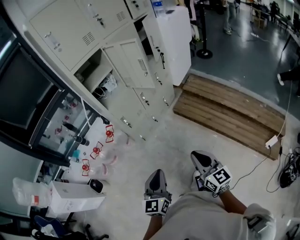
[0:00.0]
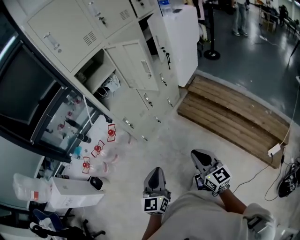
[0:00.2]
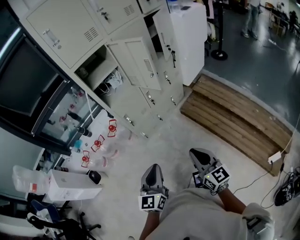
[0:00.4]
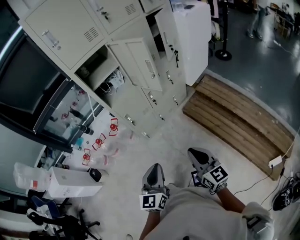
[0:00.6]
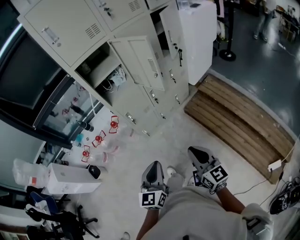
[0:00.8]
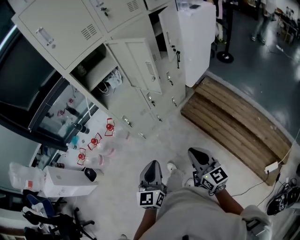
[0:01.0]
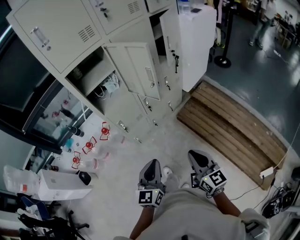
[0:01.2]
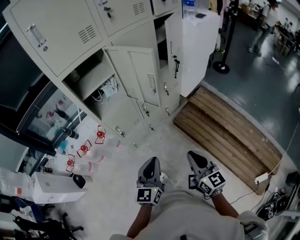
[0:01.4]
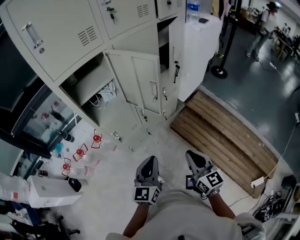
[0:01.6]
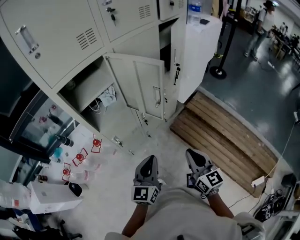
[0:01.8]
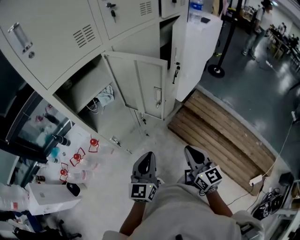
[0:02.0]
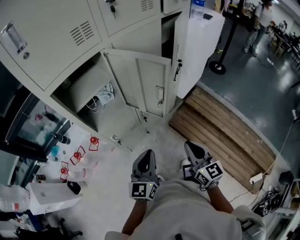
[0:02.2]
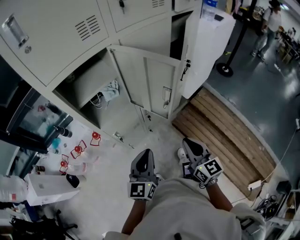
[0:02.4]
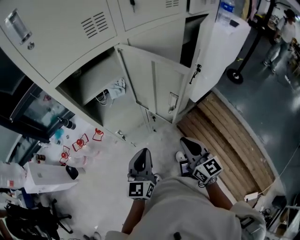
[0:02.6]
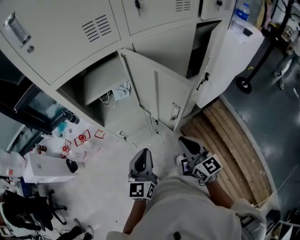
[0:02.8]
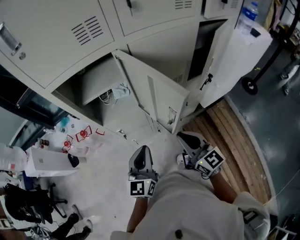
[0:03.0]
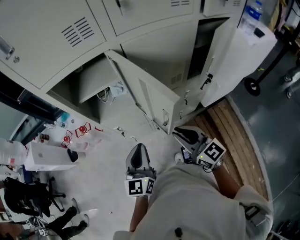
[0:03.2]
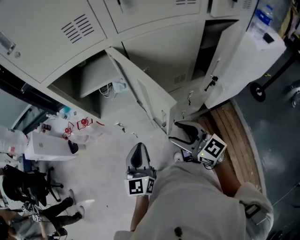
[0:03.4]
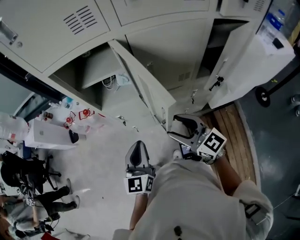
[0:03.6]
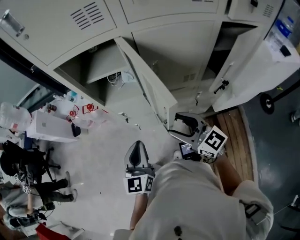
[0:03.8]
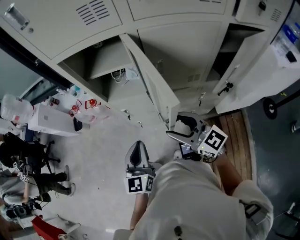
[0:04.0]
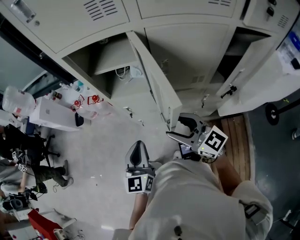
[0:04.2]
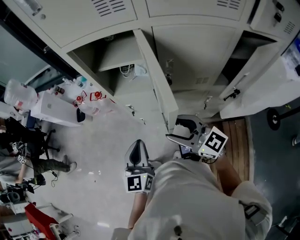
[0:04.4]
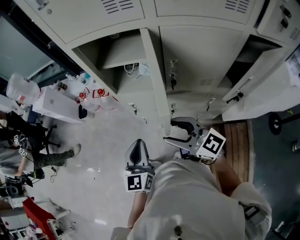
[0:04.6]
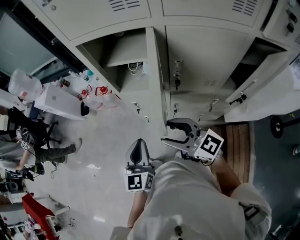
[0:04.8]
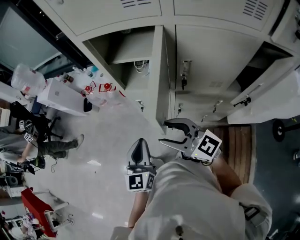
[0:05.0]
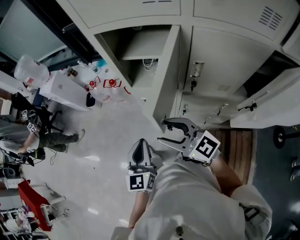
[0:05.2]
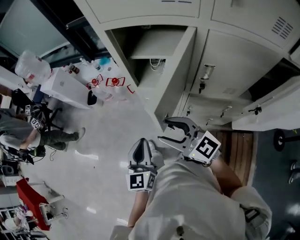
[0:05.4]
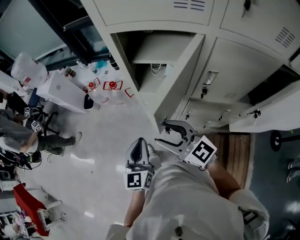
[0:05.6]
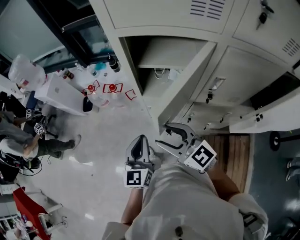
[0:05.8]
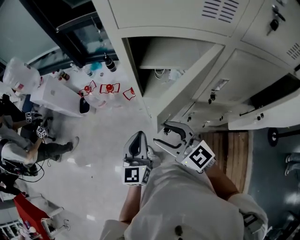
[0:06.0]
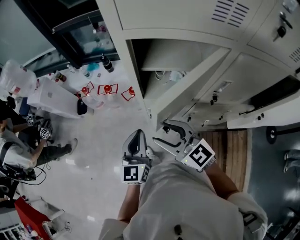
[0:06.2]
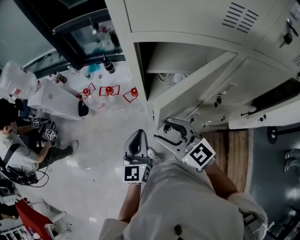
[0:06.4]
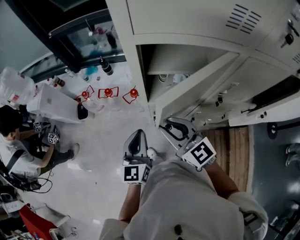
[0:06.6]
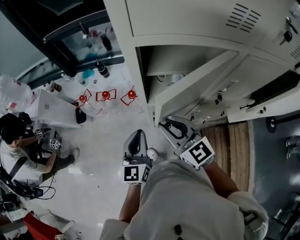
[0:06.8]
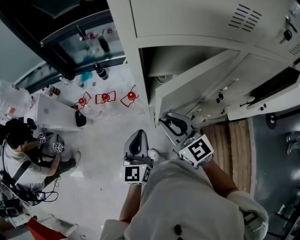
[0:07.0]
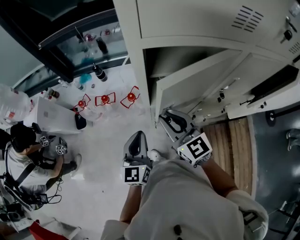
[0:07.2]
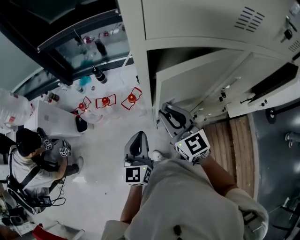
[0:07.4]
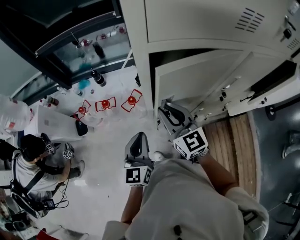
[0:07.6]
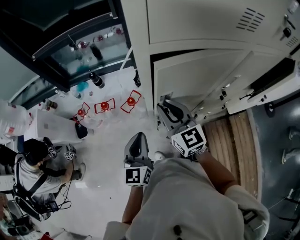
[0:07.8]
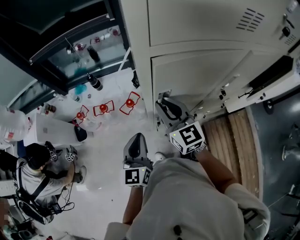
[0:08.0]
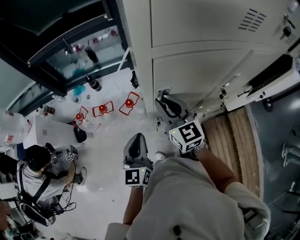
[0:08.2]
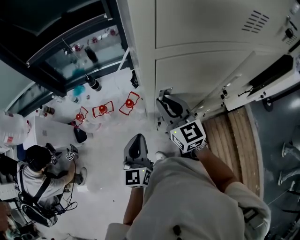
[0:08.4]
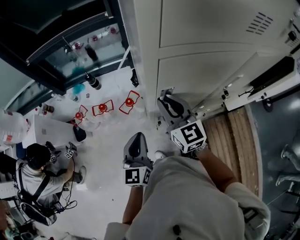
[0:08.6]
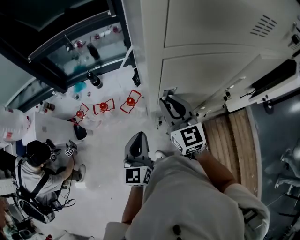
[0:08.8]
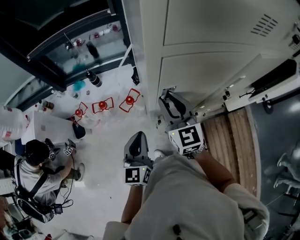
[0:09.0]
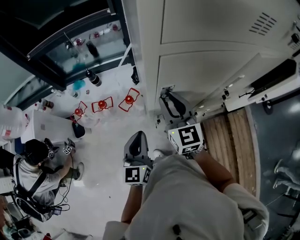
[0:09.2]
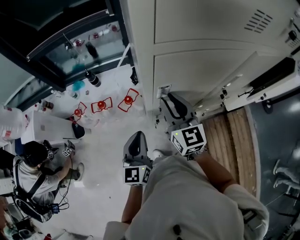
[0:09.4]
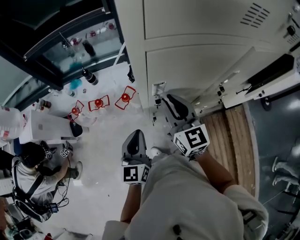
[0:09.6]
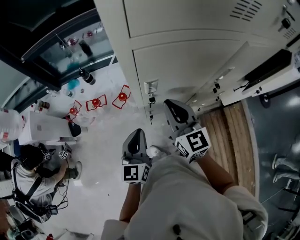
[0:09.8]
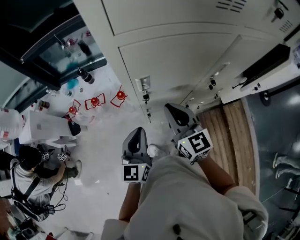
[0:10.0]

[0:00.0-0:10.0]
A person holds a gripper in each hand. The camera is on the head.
0:00.0 to 0:01.4: The left gripper heads forward and to the right, covering about 25 cm; the right gripper is displaced forward by some 25 cm.
0:01.4 to 0:02.8: Both grippers move forward, approximately 25 cm.
0:02.8 to 0:04.2: The left gripper rotates roughly 30 degrees, while the right gripper moves approximately 5 cm, turns by about 50 degrees, and opens up.
0:04.2 to 0:05.8: The right gripper travels to the left and forward by some 20 cm. The left gripper goes about 15 cm forward and to the left.
0:05.8 to 0:07.2: The left gripper is displaced forward and to the left by roughly 15 cm. Meanwhile the right gripper is displaced forward by approximately 15 cm, turns by about 30 degrees, and closes.
0:07.2 to 0:08.6: The left gripper changes place by roughly 5 cm, while the right gripper moves forward, about 10 cm.
0:08.6 to 0:10.0: The right gripper goes approximately 10 cm backward and to the right, while the left gripper heads to the right, covering roughly 5 cm.

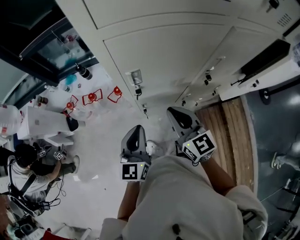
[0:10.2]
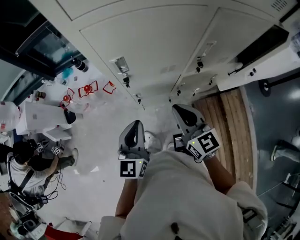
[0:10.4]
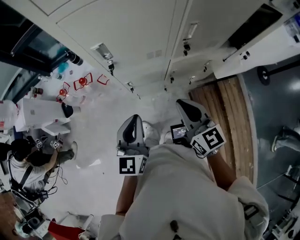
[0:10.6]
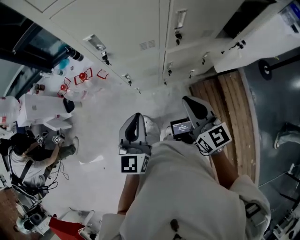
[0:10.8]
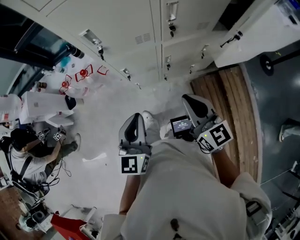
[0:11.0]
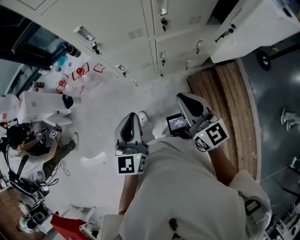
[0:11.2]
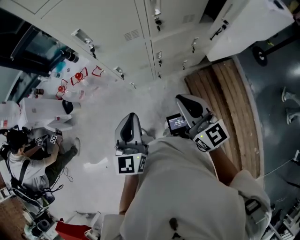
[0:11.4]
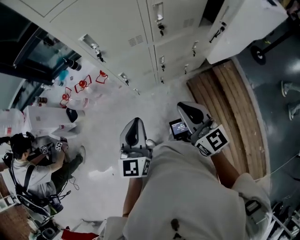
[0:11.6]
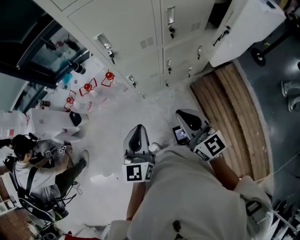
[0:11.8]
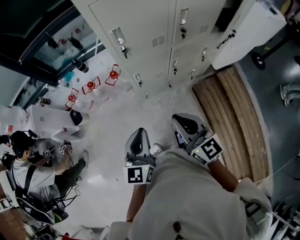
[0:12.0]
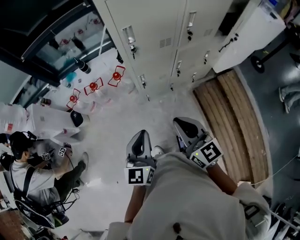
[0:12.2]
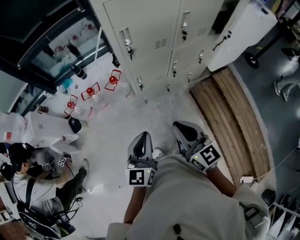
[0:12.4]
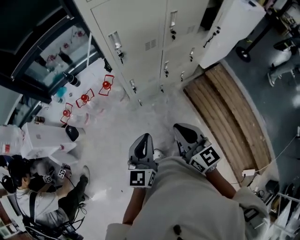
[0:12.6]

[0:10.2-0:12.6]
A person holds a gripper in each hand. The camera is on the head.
0:10.2 to 0:11.4: The two grippers go roughly 25 cm backward and to the right.
0:11.4 to 0:12.6: The left gripper travels to the left by about 15 cm; the right gripper shifts about 20 cm to the left and backward.

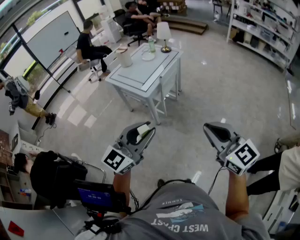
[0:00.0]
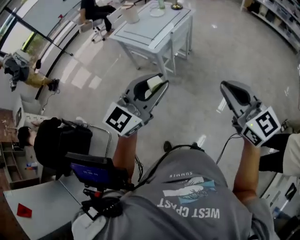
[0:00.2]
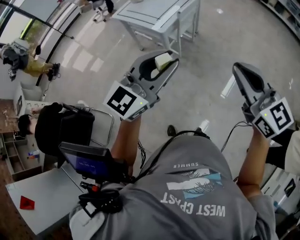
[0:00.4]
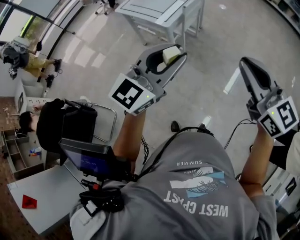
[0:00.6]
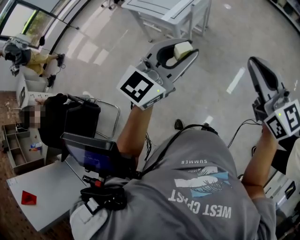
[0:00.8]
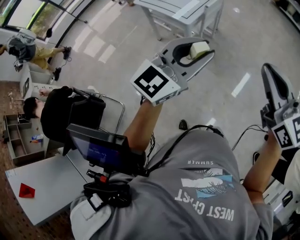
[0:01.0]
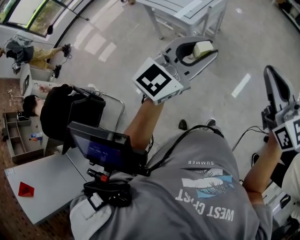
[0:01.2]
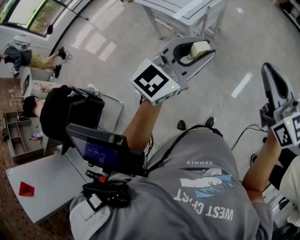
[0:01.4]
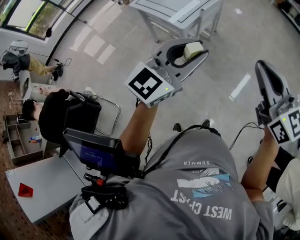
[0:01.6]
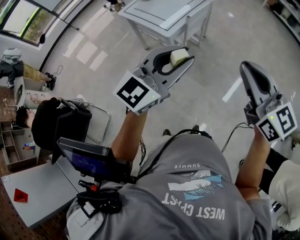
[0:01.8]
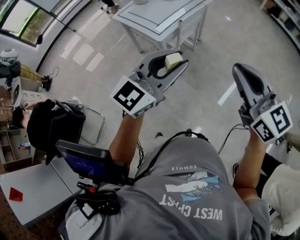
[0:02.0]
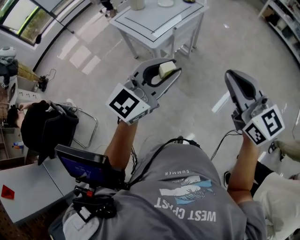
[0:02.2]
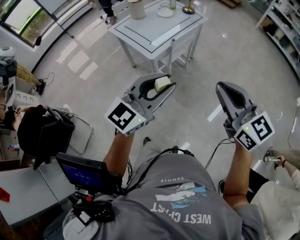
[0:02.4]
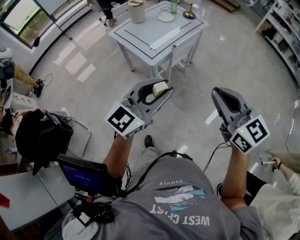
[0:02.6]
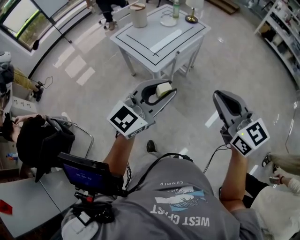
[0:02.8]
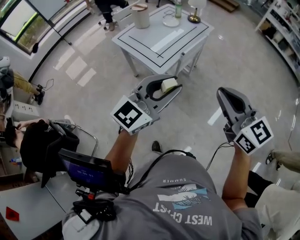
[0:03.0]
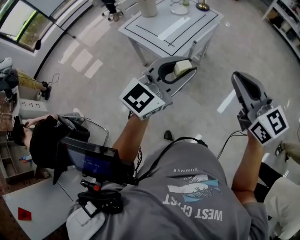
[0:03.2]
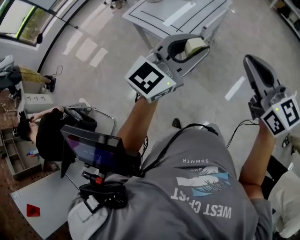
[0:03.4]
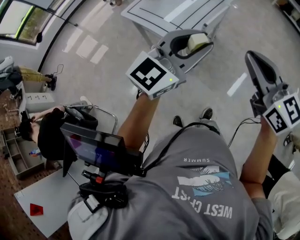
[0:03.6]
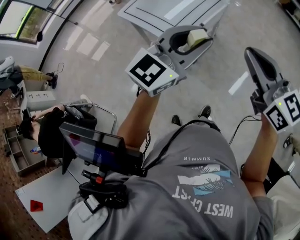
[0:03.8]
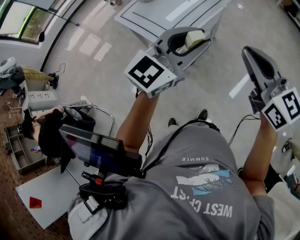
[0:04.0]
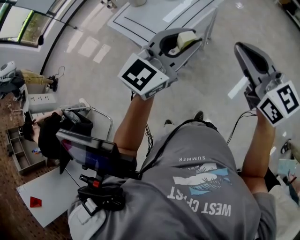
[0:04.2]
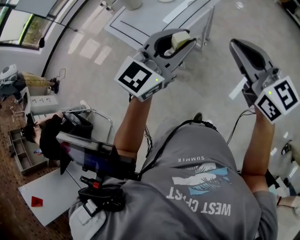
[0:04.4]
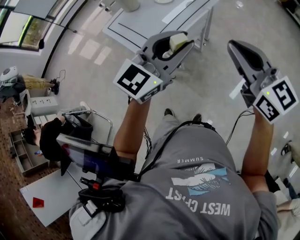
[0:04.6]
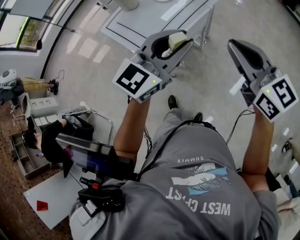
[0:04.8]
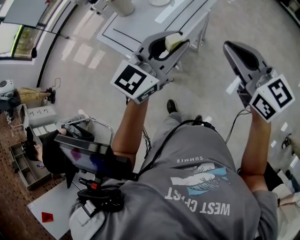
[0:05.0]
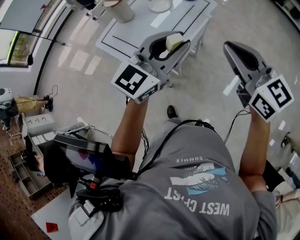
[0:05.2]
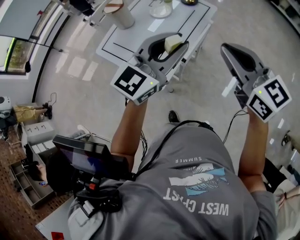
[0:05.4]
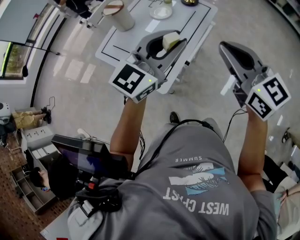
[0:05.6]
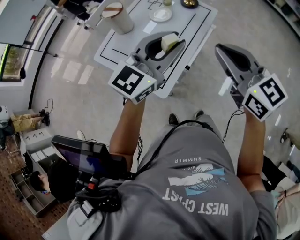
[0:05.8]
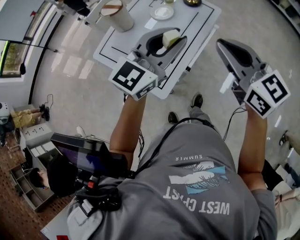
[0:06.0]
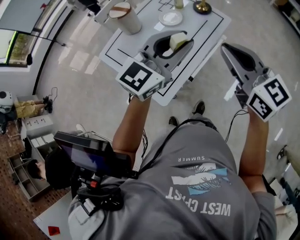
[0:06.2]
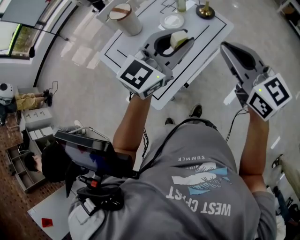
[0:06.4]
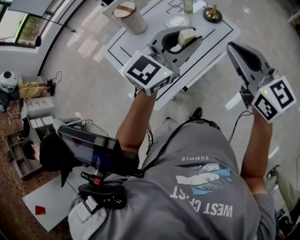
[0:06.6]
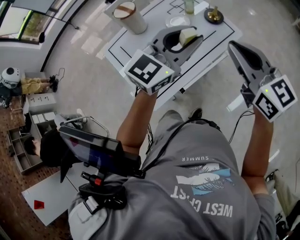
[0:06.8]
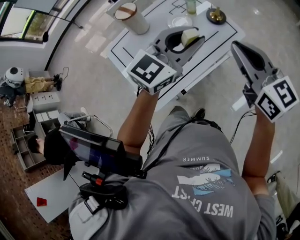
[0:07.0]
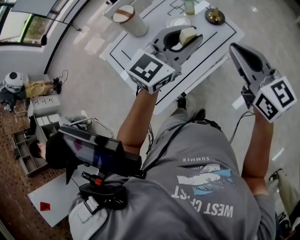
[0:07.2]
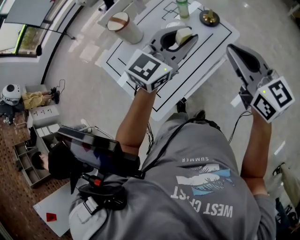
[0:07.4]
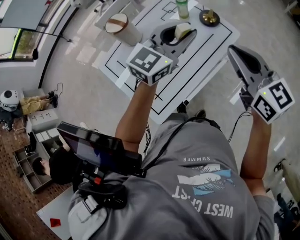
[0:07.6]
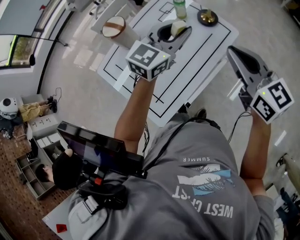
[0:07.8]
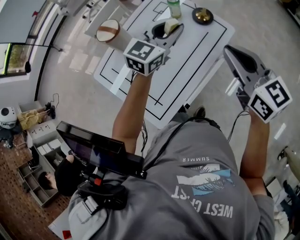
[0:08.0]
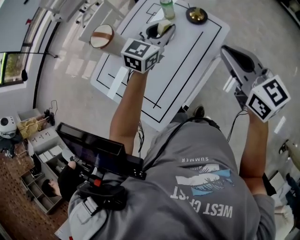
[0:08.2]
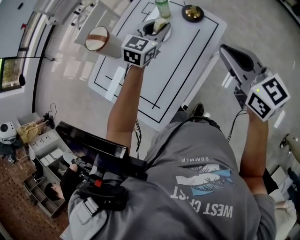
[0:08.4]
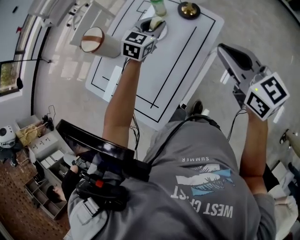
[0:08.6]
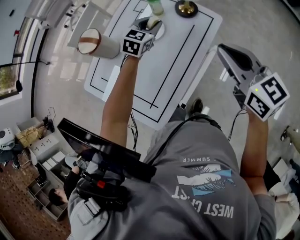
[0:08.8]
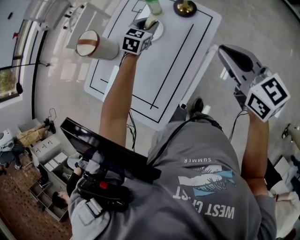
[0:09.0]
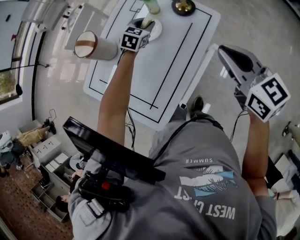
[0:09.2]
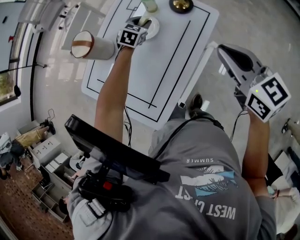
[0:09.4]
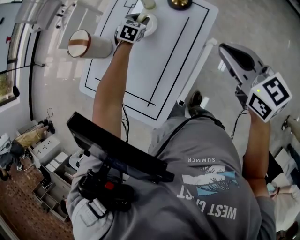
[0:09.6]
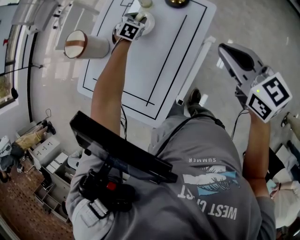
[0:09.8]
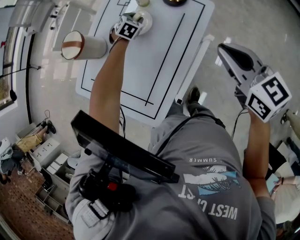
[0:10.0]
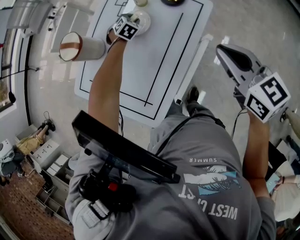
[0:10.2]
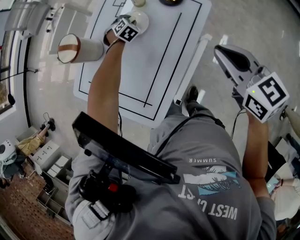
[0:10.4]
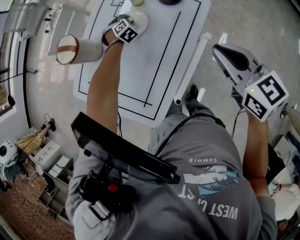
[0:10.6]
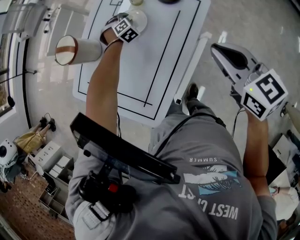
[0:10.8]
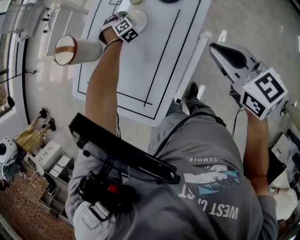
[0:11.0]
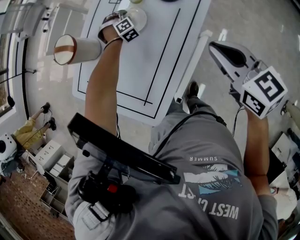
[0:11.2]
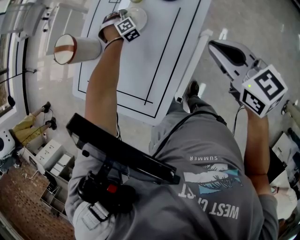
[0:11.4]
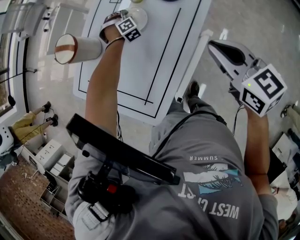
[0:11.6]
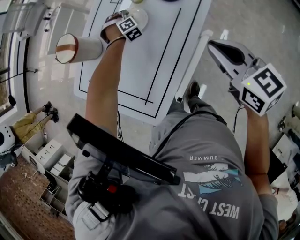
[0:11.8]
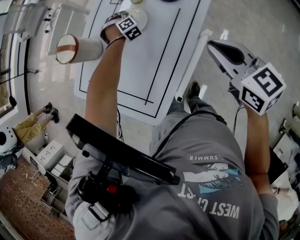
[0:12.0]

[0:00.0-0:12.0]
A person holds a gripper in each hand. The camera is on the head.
0:00.0 to 0:01.6: The left gripper goes roughly 15 cm forward. The right gripper moves forward and backward over some 10 cm, changing direction 2 times.
0:01.6 to 0:03.0: Both grippers travel together forward, roughly 15 cm.
0:03.0 to 0:04.4: The grippers both shift forward and to the right by about 20 cm.
0:04.4 to 0:06.0: Both grippers travel together forward and to the left, roughly 20 cm.
0:06.0 to 0:07.6: Both grippers travel together forward, about 15 cm.
0:07.6 to 0:09.0: The left gripper moves downward and forward, some 30 cm, and changes its angle by roughly 30 degrees; the right gripper shifts approximately 5 cm downward.
0:09.0 to 0:10.4: The left gripper shifts roughly 15 cm downward, and changes its angle by roughly 40 degrees.
0:10.4 to 0:12.0: The left gripper changes its angle by some 20 degrees.
